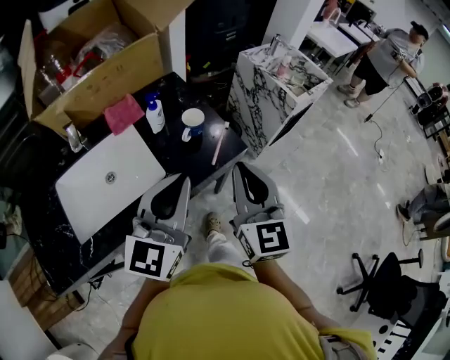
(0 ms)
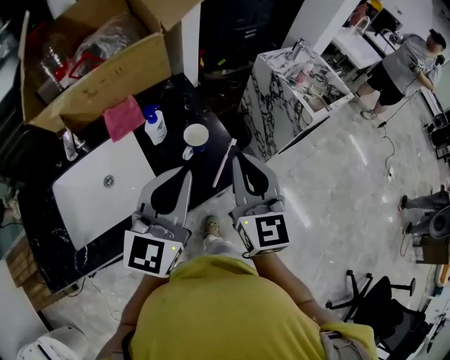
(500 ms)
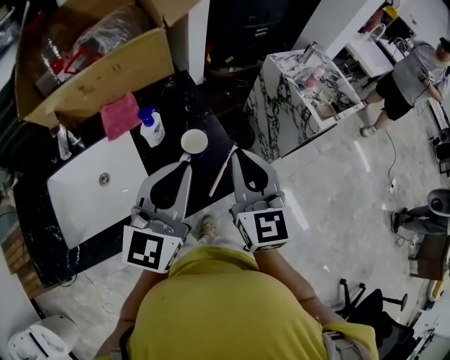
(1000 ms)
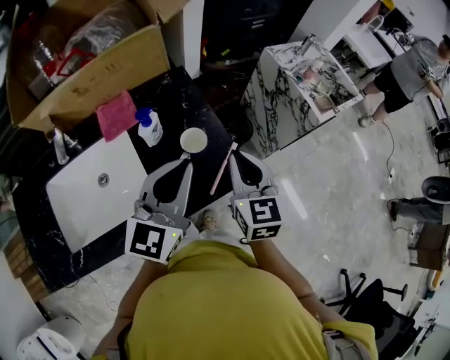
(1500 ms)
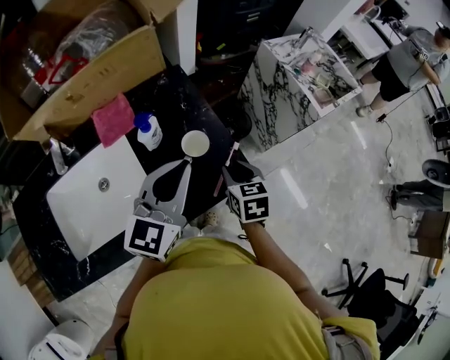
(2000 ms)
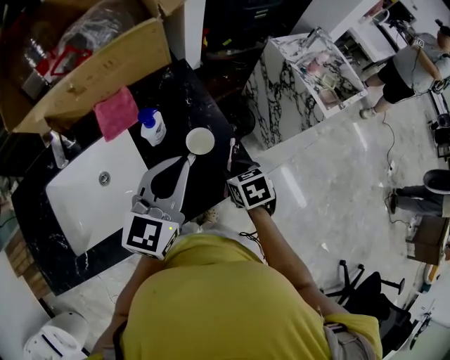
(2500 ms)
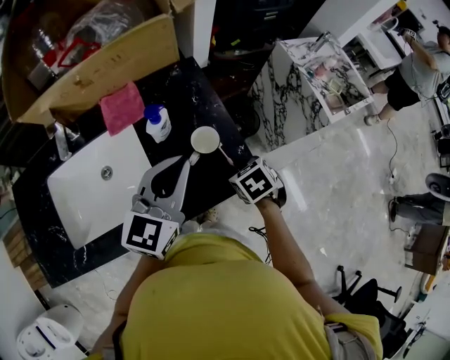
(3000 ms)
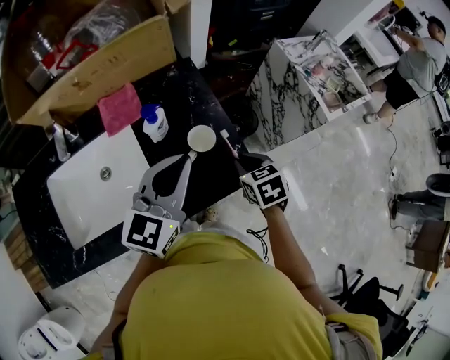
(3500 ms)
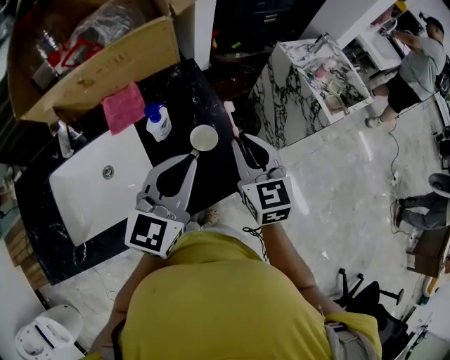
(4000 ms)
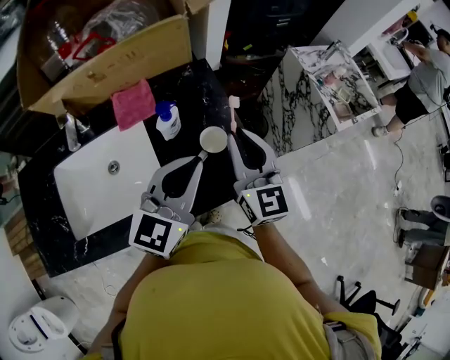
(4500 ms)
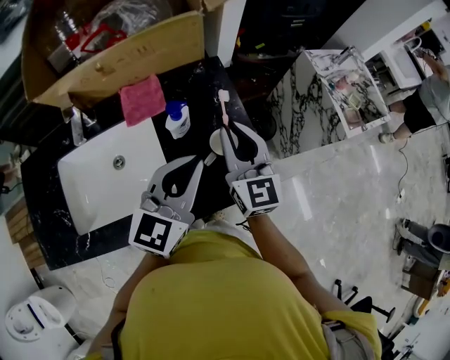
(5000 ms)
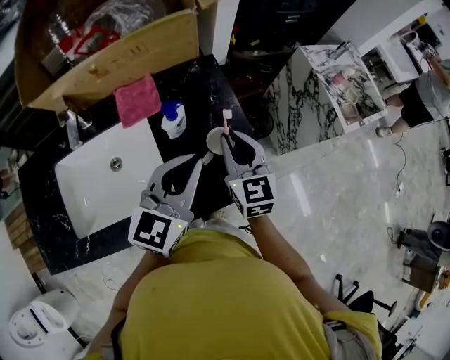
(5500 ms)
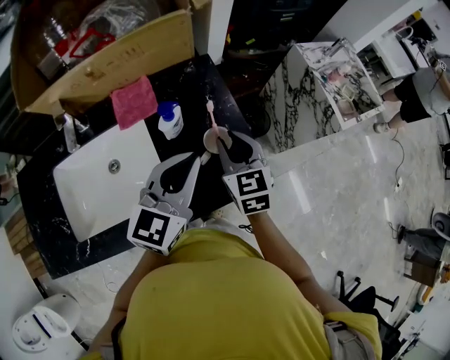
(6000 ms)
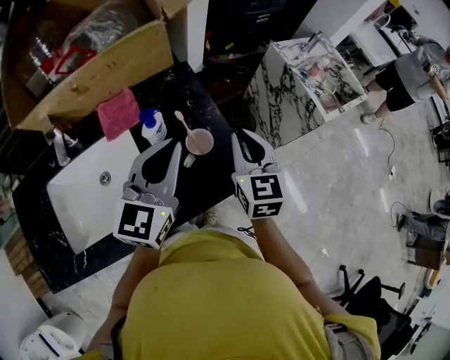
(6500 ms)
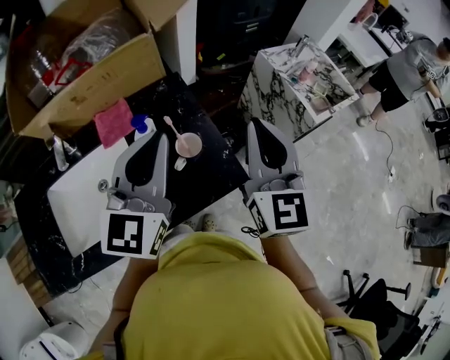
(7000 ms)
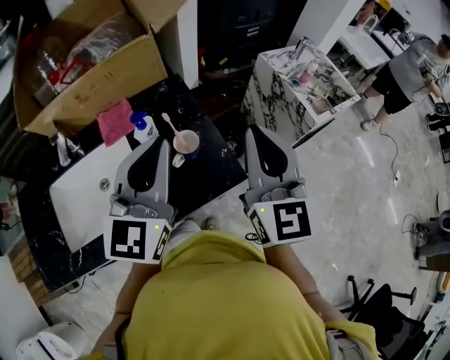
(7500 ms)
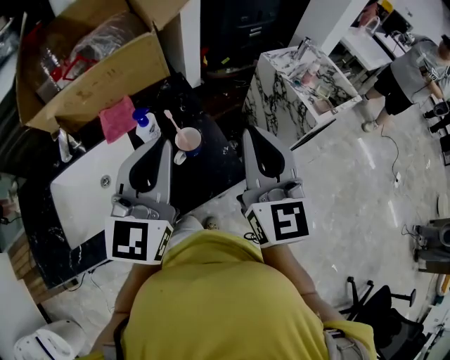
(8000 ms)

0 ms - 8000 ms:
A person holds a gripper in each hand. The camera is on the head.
0 ms - 2000 ms: The right gripper is displaced downward and forward by some 30 cm, points its fingers approximately 40 degrees further downward, and opens up. Meanwhile the left gripper heads forward, covering about 20 cm.
2000 ms - 4000 ms: The right gripper shifts approximately 15 cm upward, and changes its angle by about 30 degrees.
4000 ms - 6000 ms: The right gripper heads to the left and downward, covering approximately 10 cm.
6000 ms - 8000 ms: The left gripper shifts some 10 cm upward. The right gripper is displaced upward and to the right by approximately 25 cm, changes its angle by some 30 degrees, and closes.

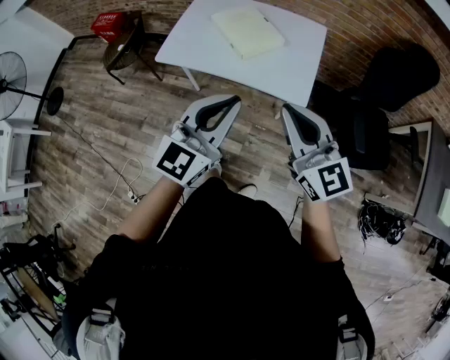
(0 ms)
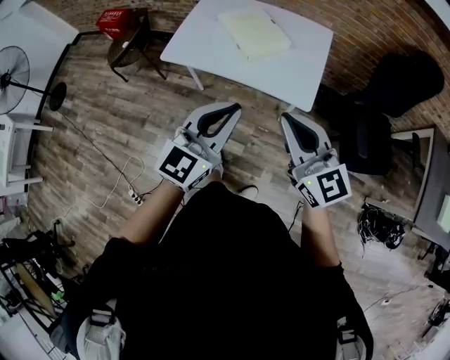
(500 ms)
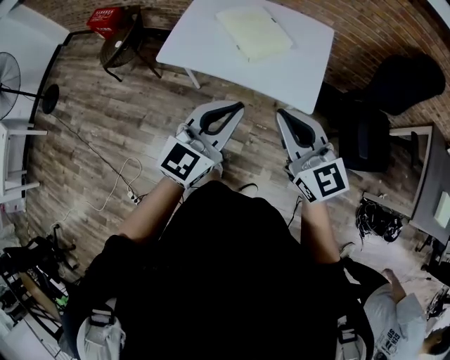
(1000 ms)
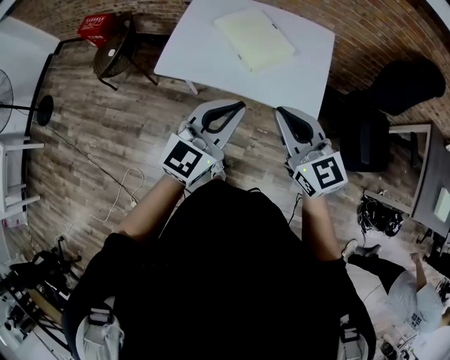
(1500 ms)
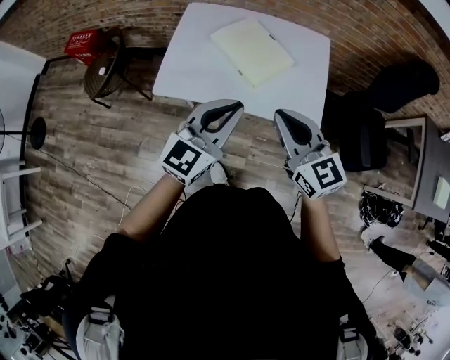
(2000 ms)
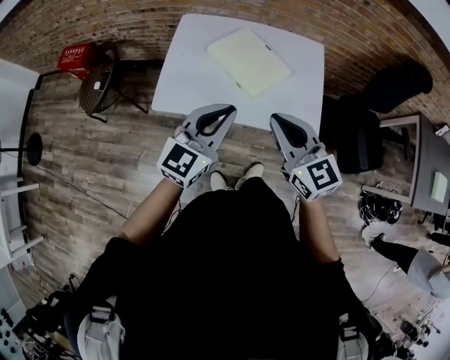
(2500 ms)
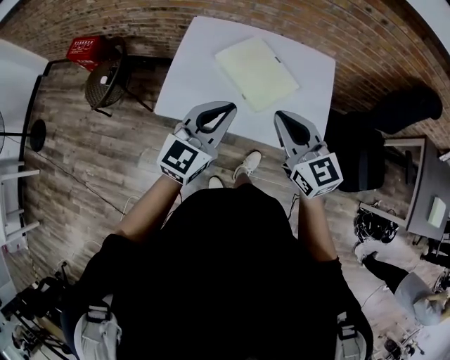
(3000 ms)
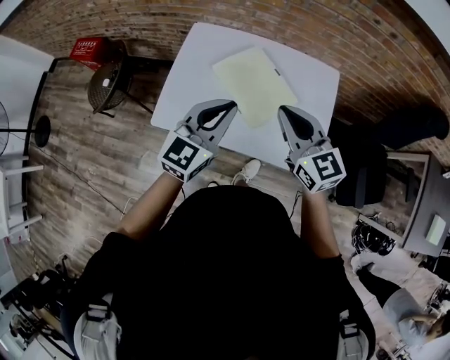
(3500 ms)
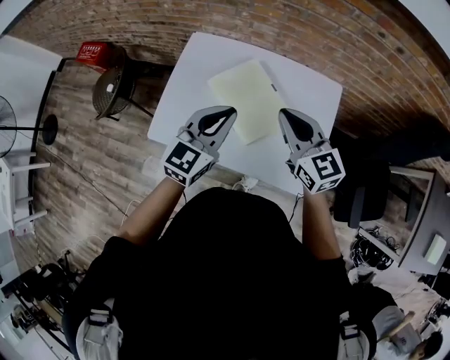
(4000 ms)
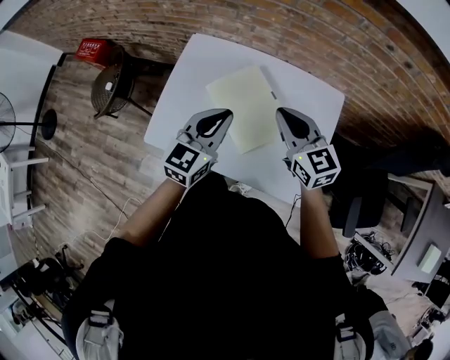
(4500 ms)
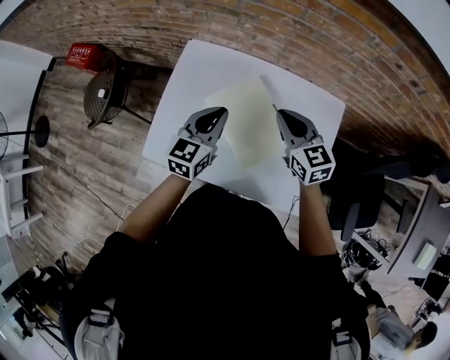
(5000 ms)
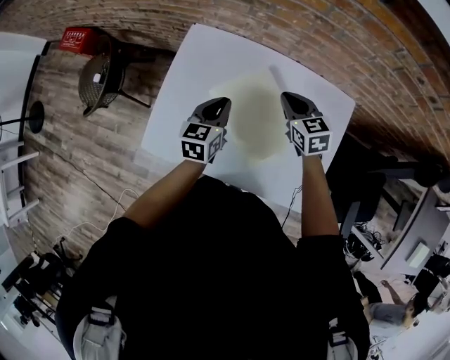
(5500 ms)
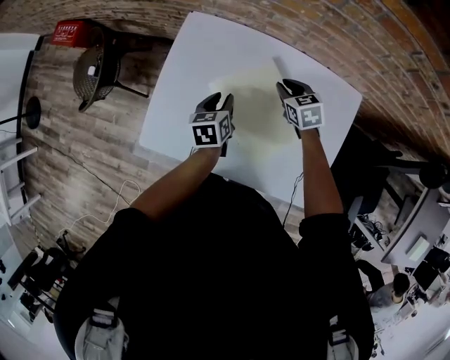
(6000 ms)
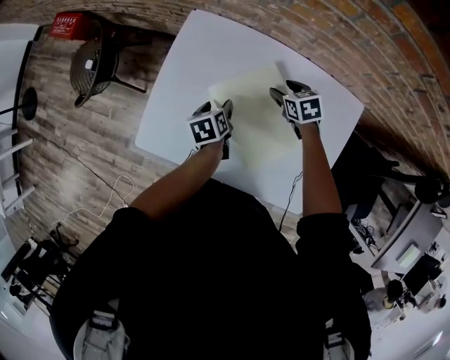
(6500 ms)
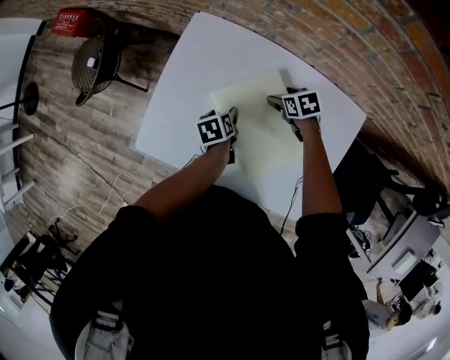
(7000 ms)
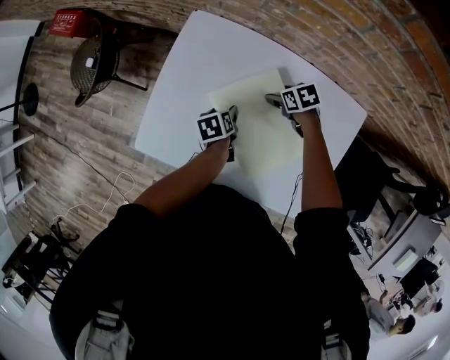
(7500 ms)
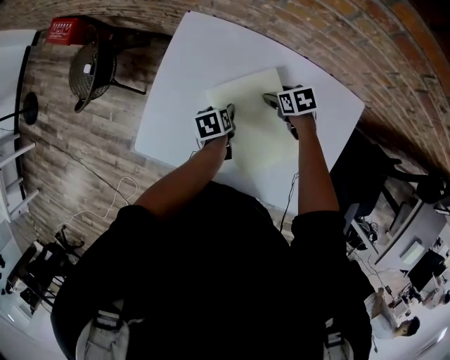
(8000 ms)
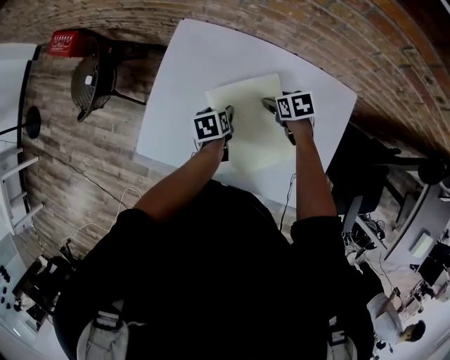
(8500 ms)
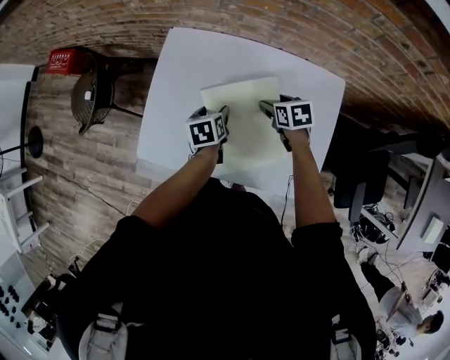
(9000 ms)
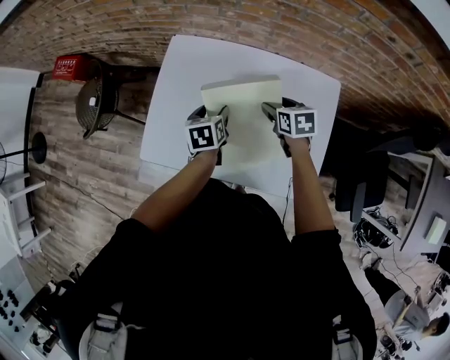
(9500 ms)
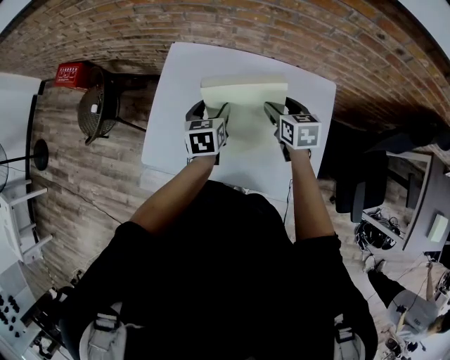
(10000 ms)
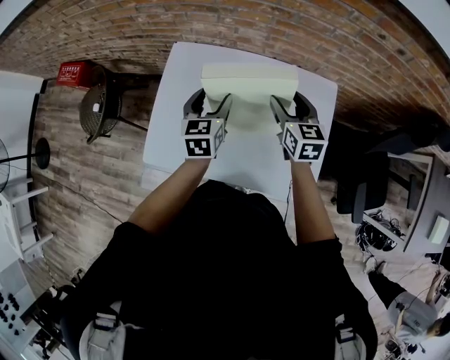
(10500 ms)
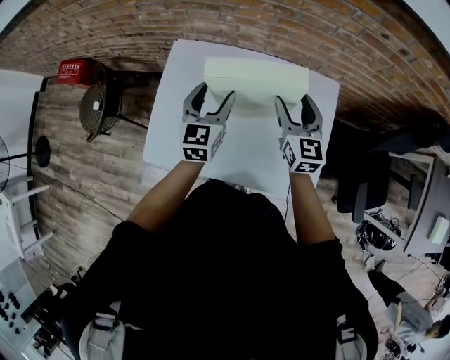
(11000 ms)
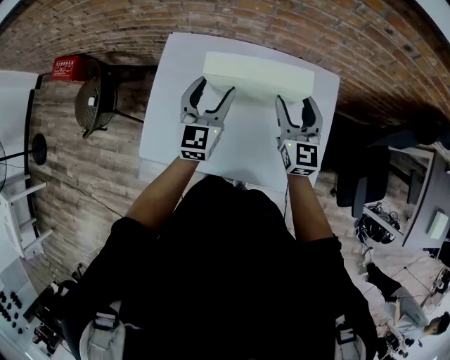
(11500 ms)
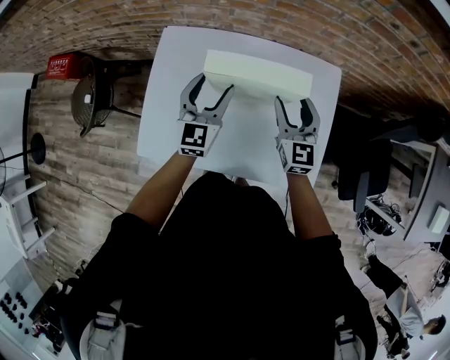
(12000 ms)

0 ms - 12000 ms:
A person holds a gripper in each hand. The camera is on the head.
0 ms - 2000 ms: The two grippers go about 20 cm forward and to the left.
2000 ms - 4000 ms: Both grippers travel together forward, roughly 25 cm.
4000 ms - 6000 ms: The two grippers go roughly 35 cm downward and forward. The right gripper angles its fingers downward, by about 40 degrees. Meanwhile the left gripper tips its fingers downward by roughly 30 degrees, and opens its fingers.
6000 ms - 8000 ms: The two grippers go approximately 10 cm downward. The left gripper changes its angle by roughly 30 degrees, and opens. Meanwhile the right gripper turns by roughly 20 degrees, and opens its fingers.
8000 ms - 10000 ms: The left gripper heads upward, covering about 20 cm, and turns by roughly 40 degrees. Meanwhile the right gripper travels upward and backward by approximately 20 cm, and turns by approximately 40 degrees.
10000 ms - 12000 ms: The left gripper heads upward, covering some 5 cm, and tilts its fingers roughly 30 degrees upward. Meanwhile the right gripper changes its angle by some 40 degrees.

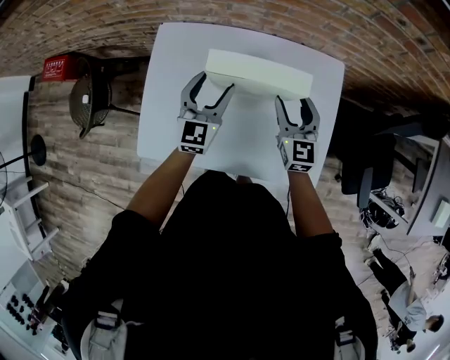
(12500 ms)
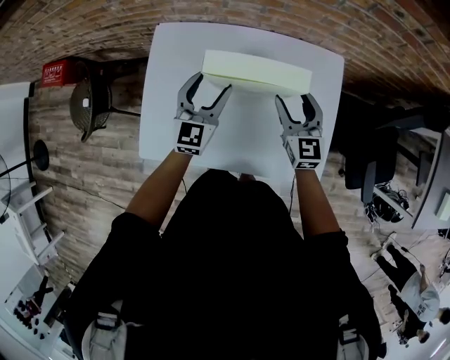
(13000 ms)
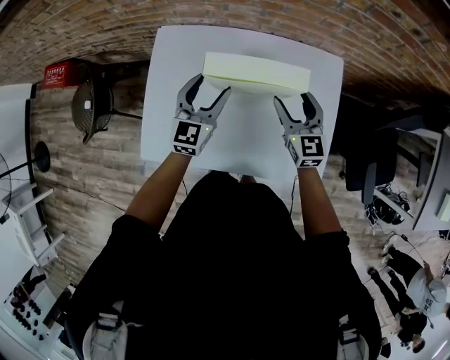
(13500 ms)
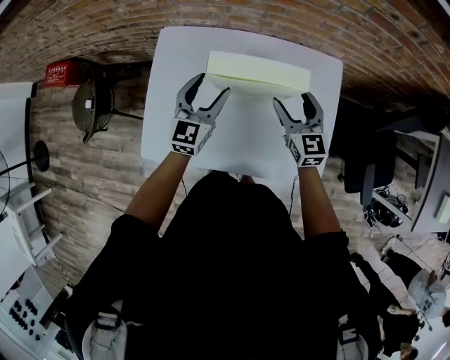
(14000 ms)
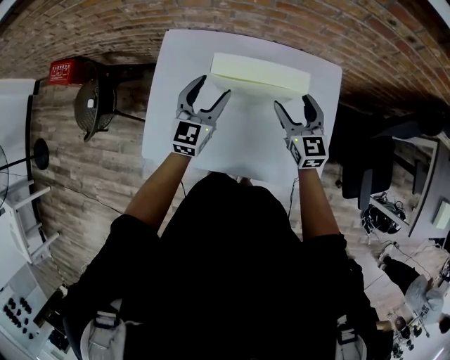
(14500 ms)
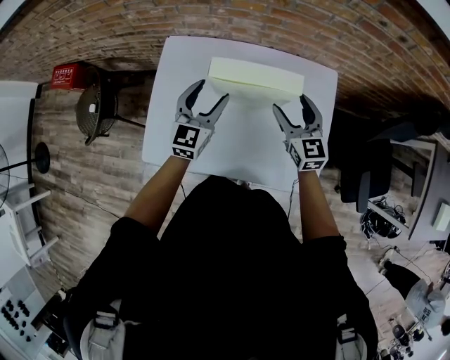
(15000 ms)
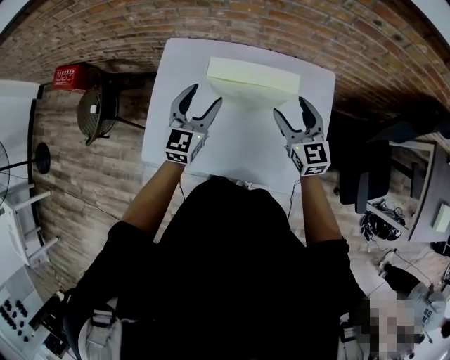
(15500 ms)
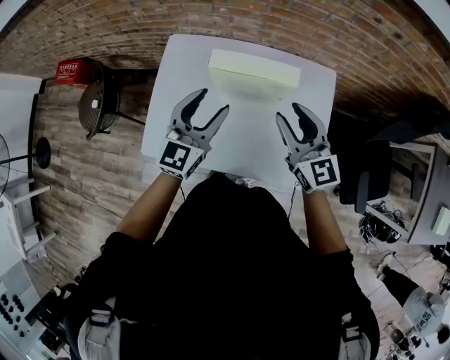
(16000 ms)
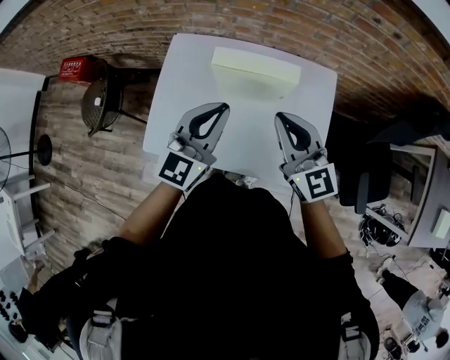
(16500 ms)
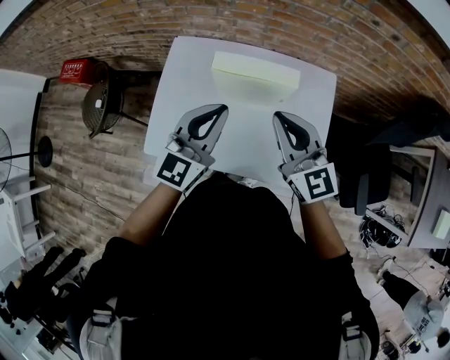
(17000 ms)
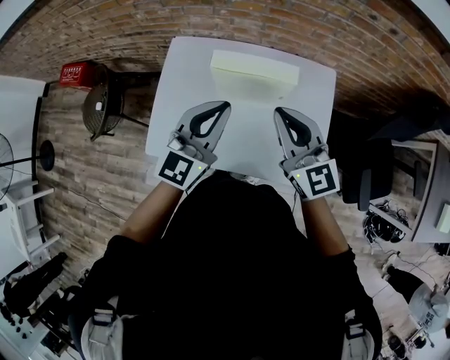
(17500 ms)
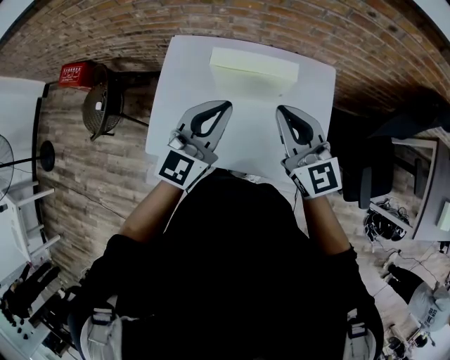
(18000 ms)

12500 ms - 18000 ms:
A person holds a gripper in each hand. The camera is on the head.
12500 ms - 14500 ms: The grippers stay close to where they were, moving slightly.
14500 ms - 16000 ms: Both grippers travel together upward and backward, about 15 cm. The right gripper closes its fingers.
16000 ms - 18000 ms: Both grippers travel together upward, approximately 5 cm. The left gripper closes, while the right gripper closes.

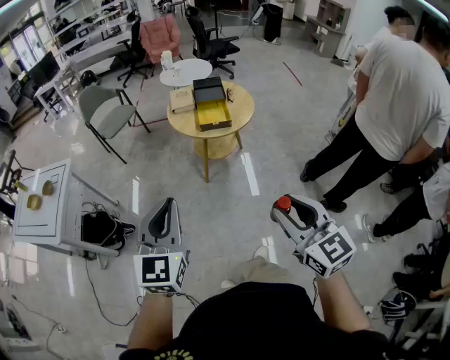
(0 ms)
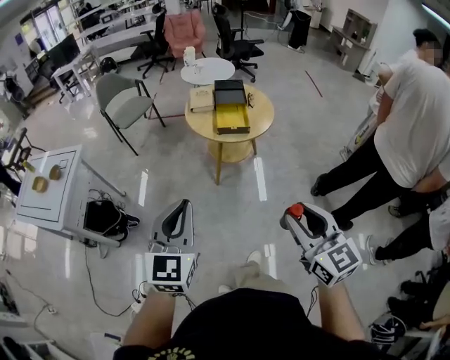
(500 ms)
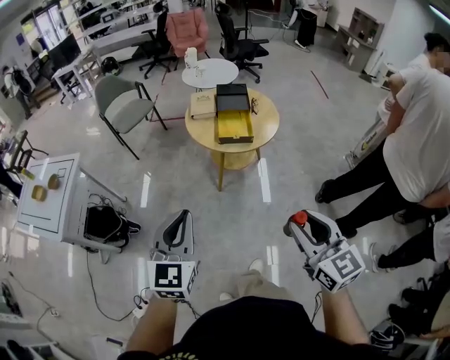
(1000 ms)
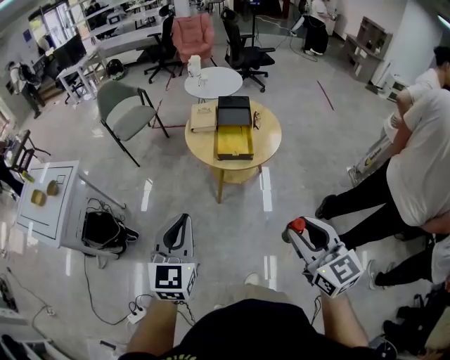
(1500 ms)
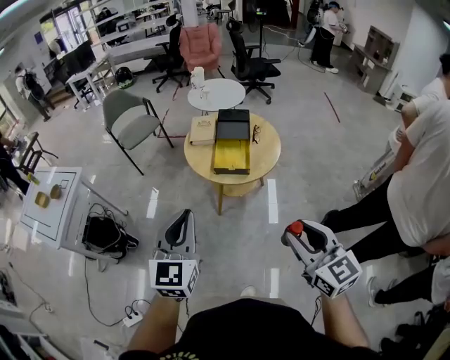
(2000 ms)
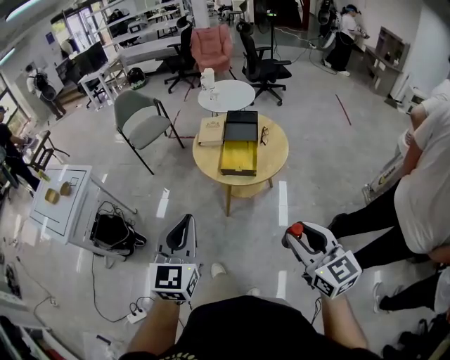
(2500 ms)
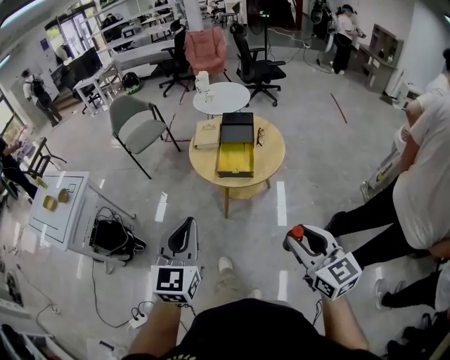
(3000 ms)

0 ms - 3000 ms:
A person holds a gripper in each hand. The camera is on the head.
0 ms - 1500 ms: The right gripper heads forward and to the right, covering approximately 20 cm. Meanwhile the left gripper shifts some 20 cm forward.
1500 ms - 3000 ms: The grippers both shift to the right by roughly 10 cm.
